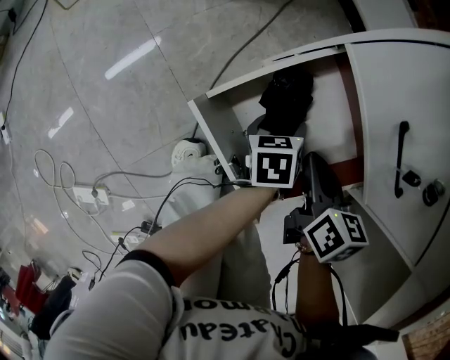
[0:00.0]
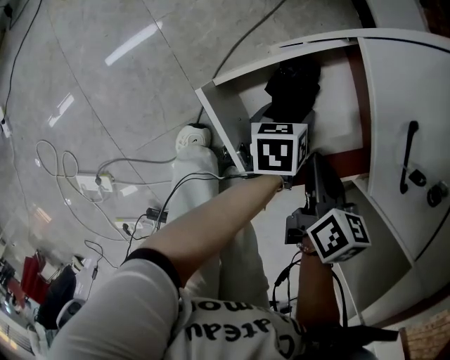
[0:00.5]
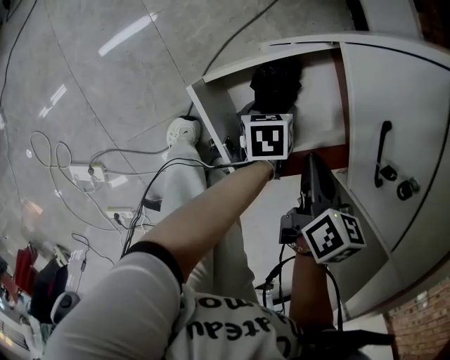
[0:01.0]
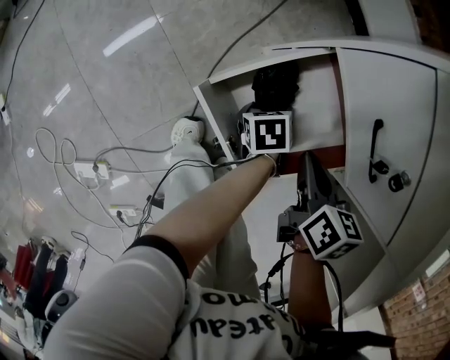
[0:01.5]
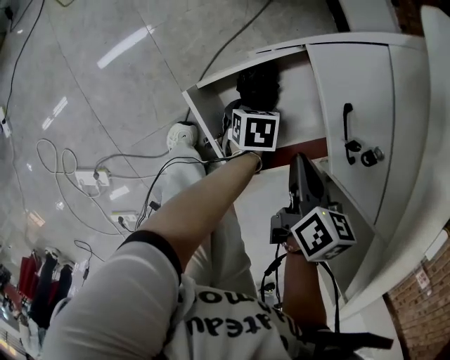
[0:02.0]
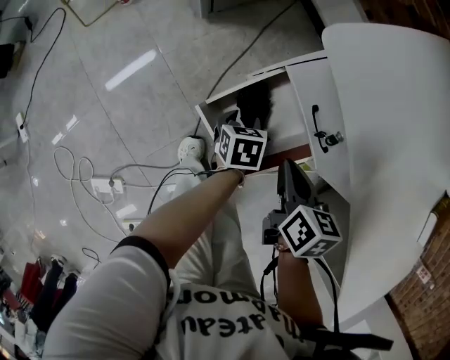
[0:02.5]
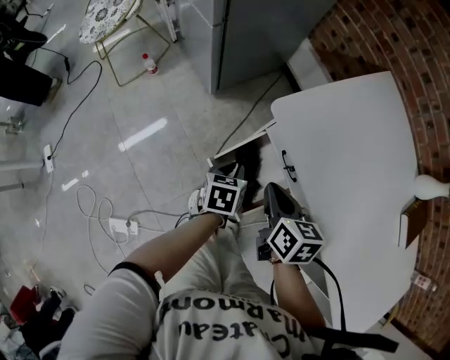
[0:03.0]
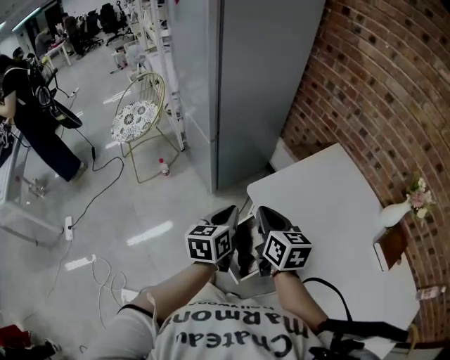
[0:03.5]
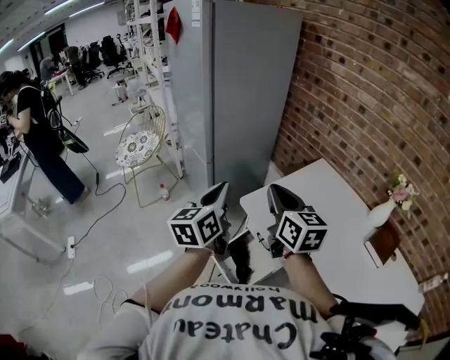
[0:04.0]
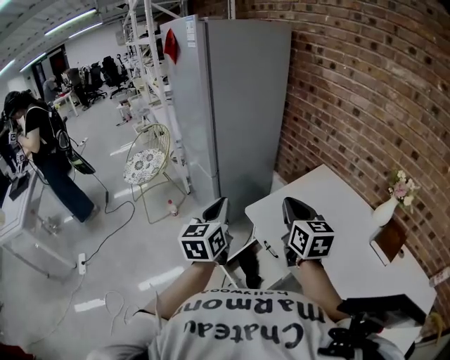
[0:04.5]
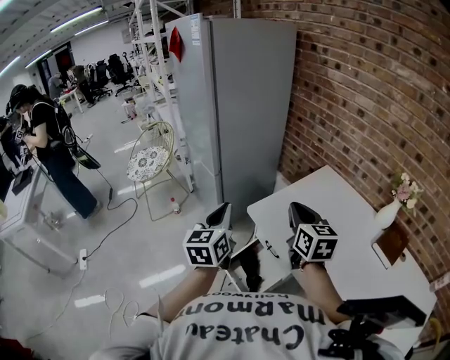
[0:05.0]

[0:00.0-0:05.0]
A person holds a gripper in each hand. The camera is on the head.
0:00.0 to 0:02.5: The right gripper heads upward, covering some 15 cm. Meanwhile the left gripper travels upward and to the left by approximately 15 cm, and swivels roughly 20 degrees.
0:02.5 to 0:05.0: Both grippers travel together upward, about 50 cm. The right gripper tilts its fingers some 40 degrees upward; the left gripper tips its fingers upward by some 50 degrees, and closes its fingers.

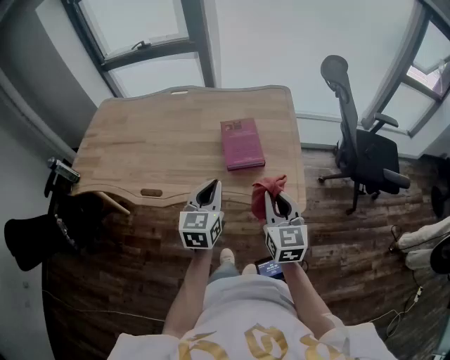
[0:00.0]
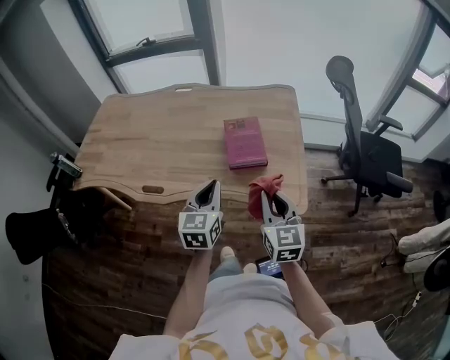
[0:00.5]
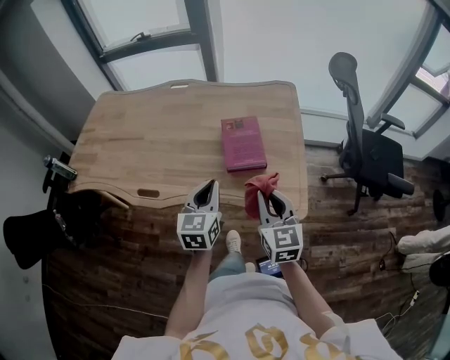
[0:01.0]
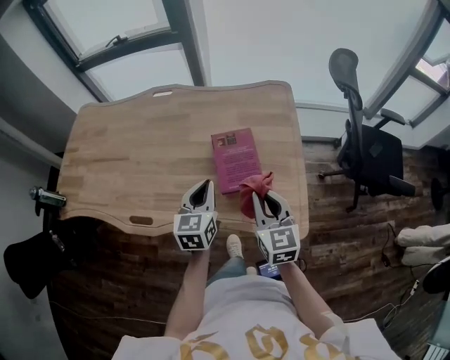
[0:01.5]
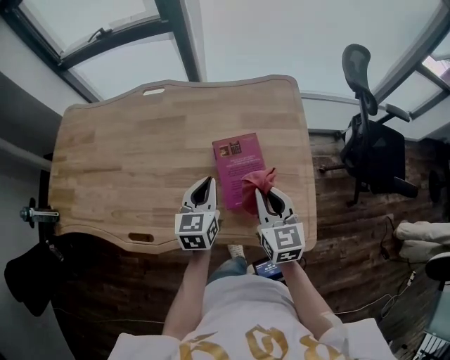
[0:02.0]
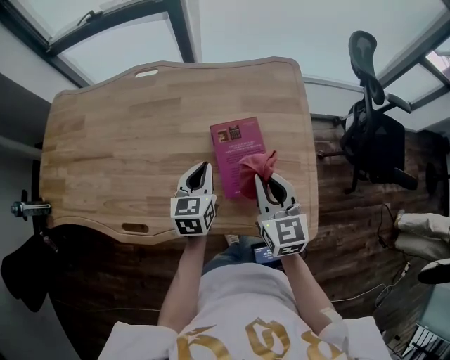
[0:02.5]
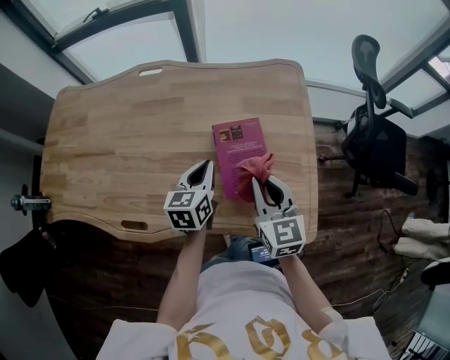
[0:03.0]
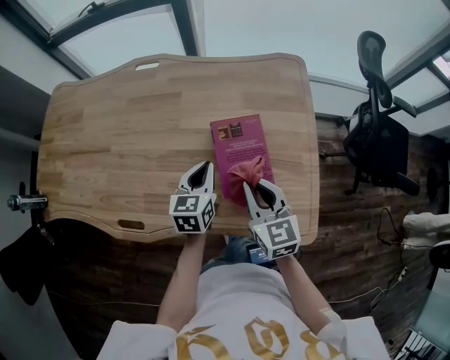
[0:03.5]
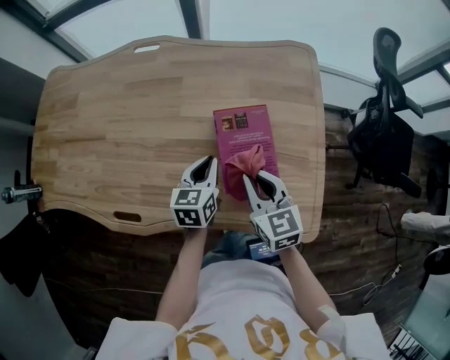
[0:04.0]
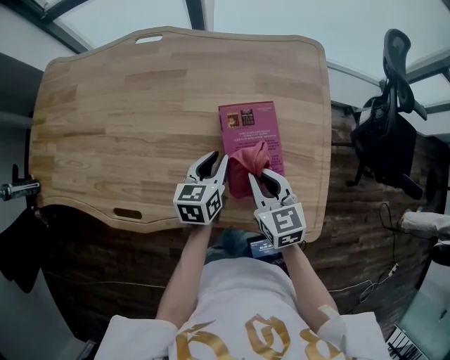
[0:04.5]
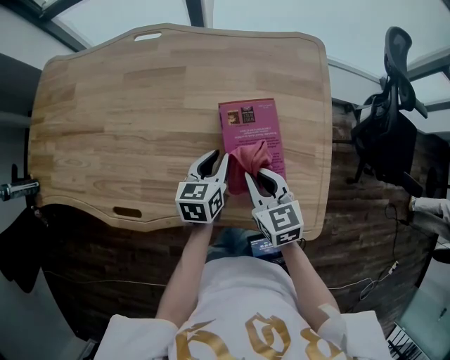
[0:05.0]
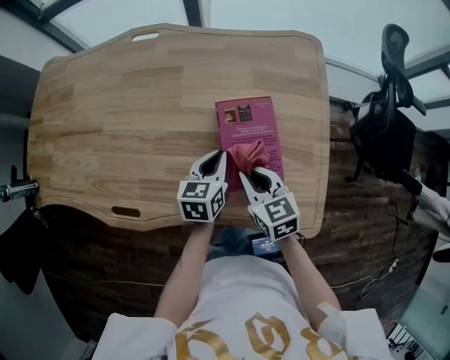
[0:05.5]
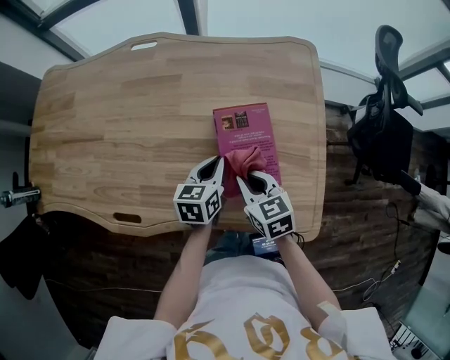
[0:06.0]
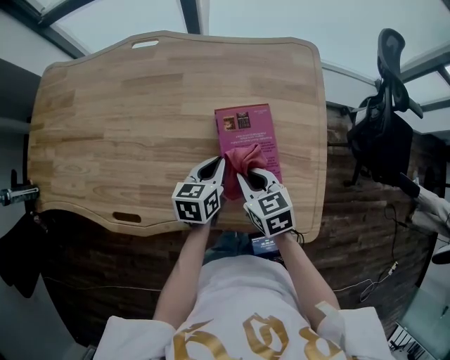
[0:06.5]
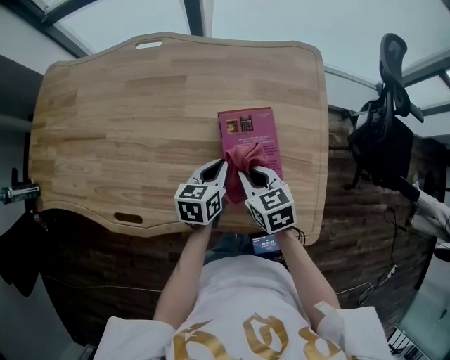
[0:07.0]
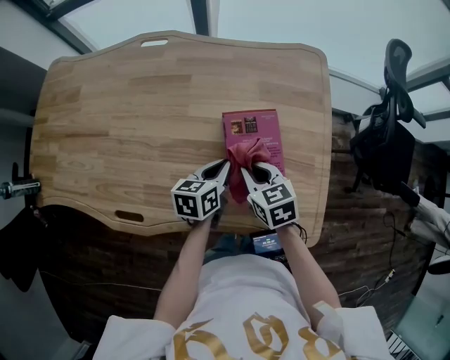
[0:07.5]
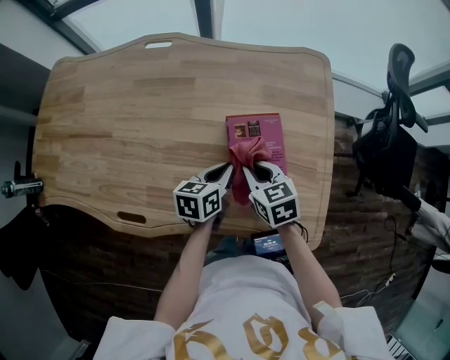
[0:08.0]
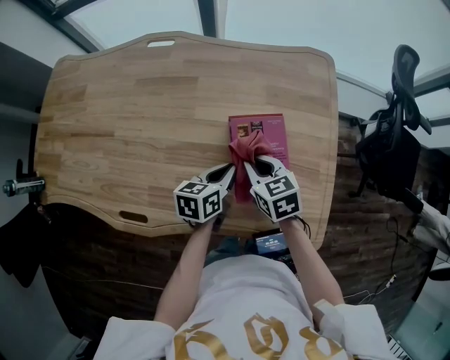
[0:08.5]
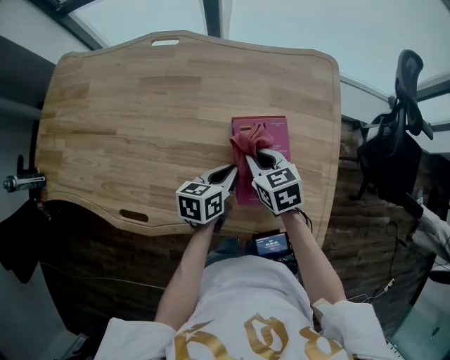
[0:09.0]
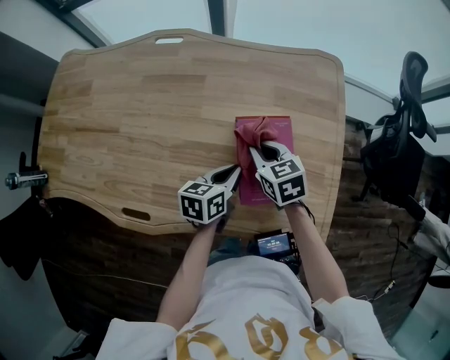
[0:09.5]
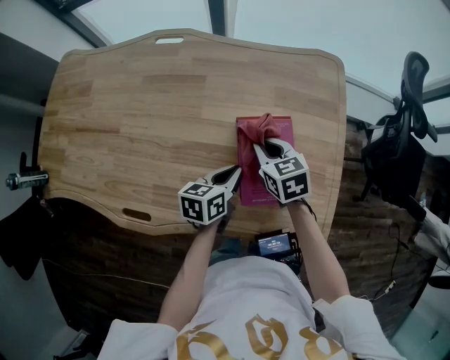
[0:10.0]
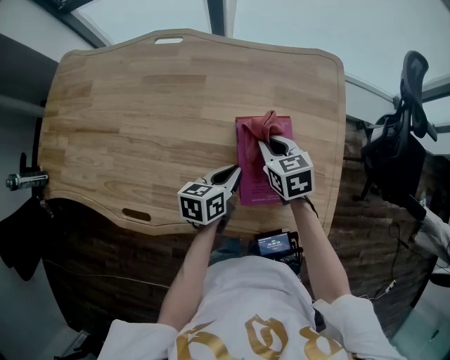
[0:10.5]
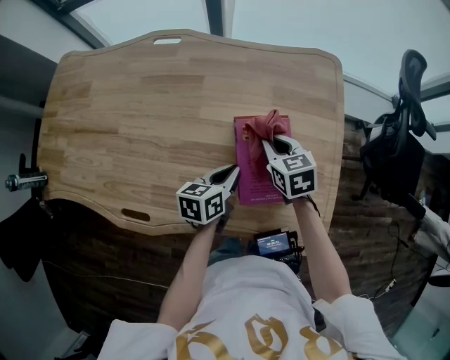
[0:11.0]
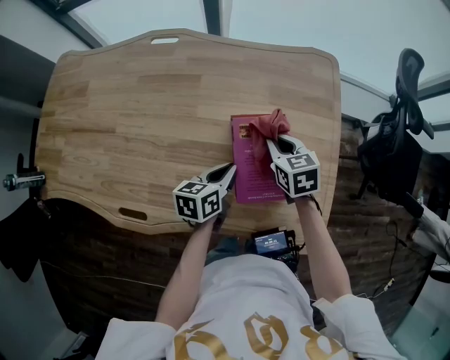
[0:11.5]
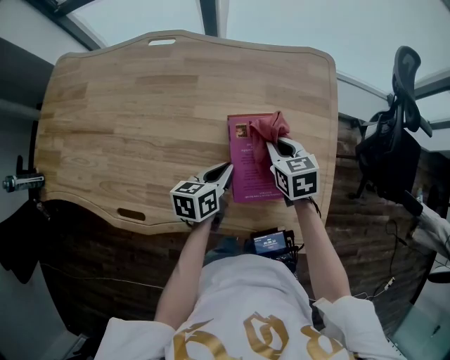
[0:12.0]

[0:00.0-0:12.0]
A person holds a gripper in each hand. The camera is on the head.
0:00.0 to 0:02.0: The two grippers go approximately 25 cm forward.
0:02.0 to 0:04.0: Both grippers travel together downward, about 10 cm.
0:04.0 to 0:06.0: The right gripper moves downward, roughly 5 cm.
0:06.0 to 0:08.0: The grippers stay close to where they were, moving slightly.
0:08.0 to 0:10.0: The right gripper shifts some 5 cm forward.
0:10.0 to 0:12.0: The right gripper heads to the right, covering roughly 5 cm.

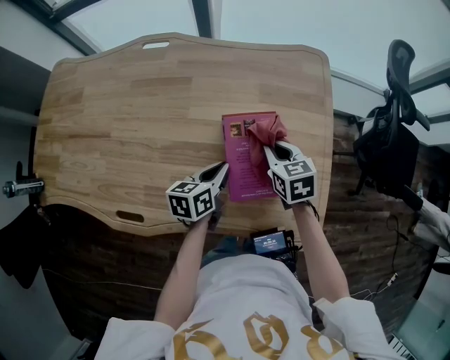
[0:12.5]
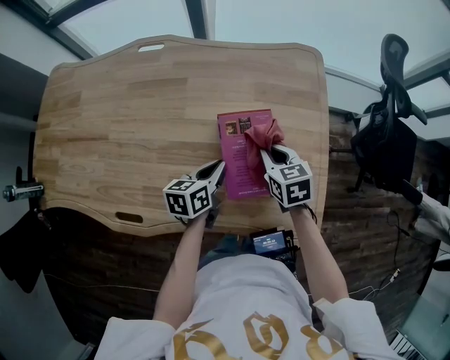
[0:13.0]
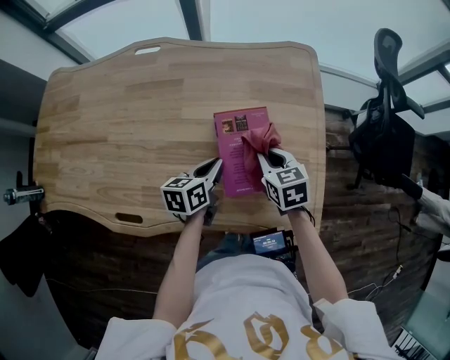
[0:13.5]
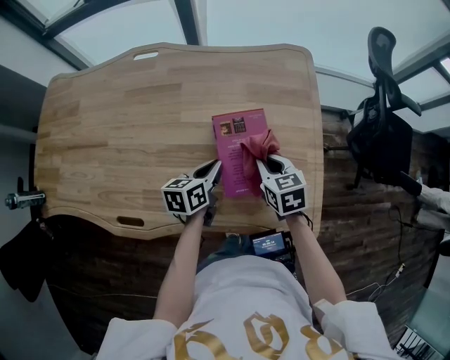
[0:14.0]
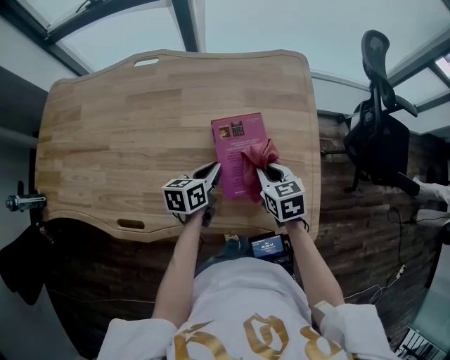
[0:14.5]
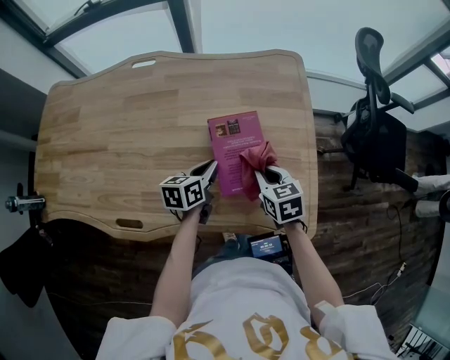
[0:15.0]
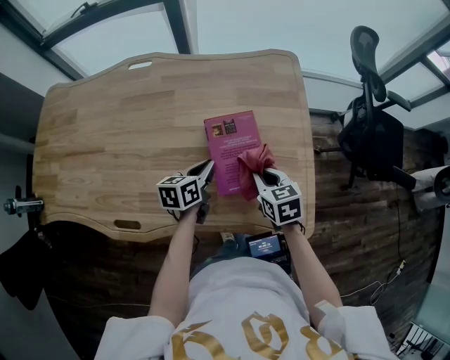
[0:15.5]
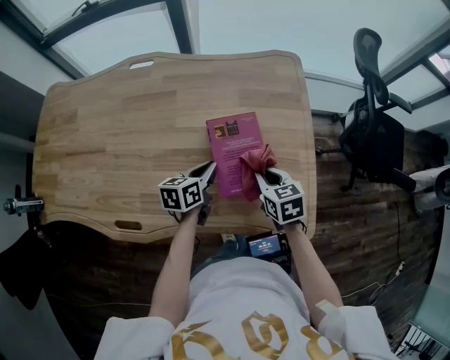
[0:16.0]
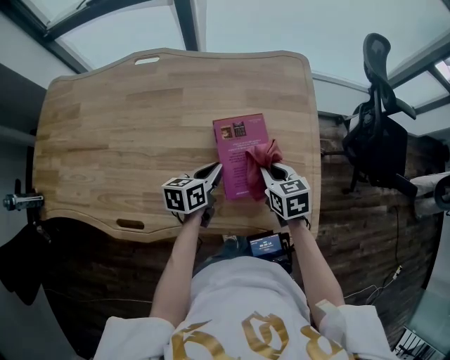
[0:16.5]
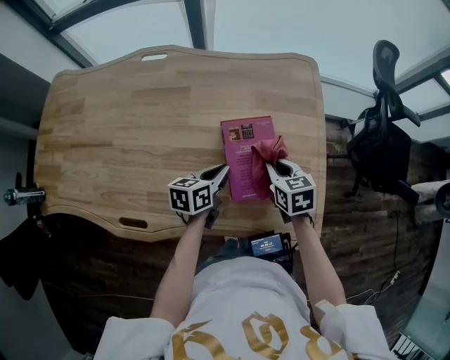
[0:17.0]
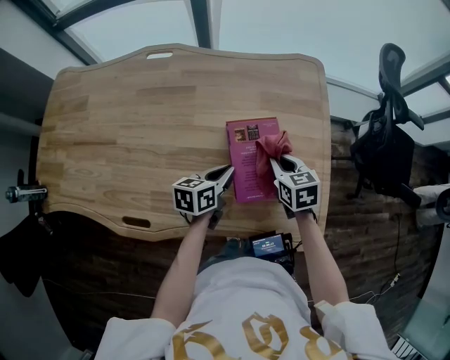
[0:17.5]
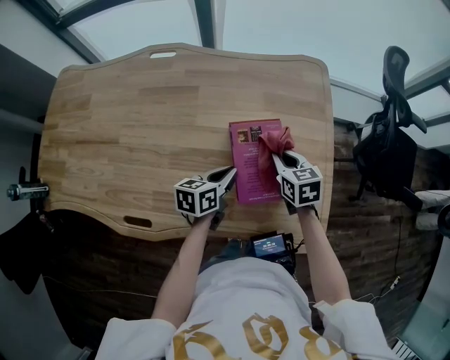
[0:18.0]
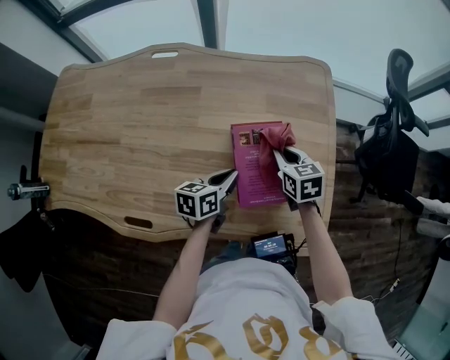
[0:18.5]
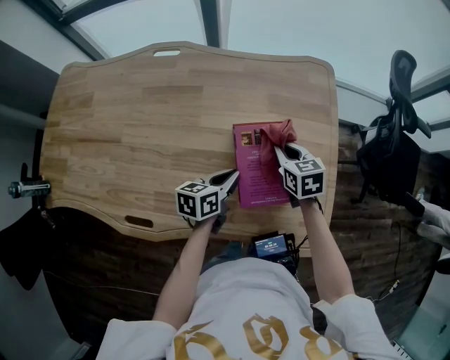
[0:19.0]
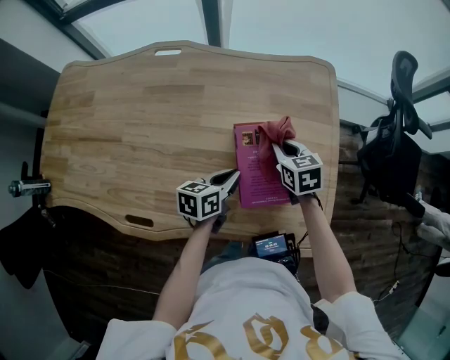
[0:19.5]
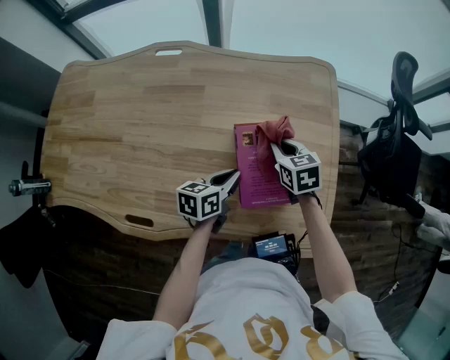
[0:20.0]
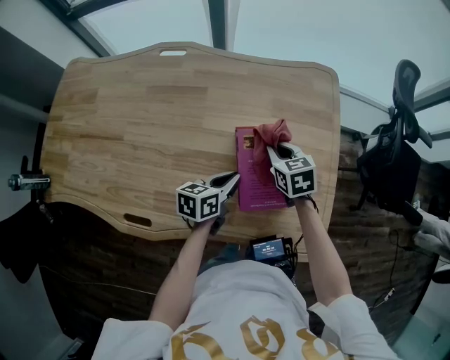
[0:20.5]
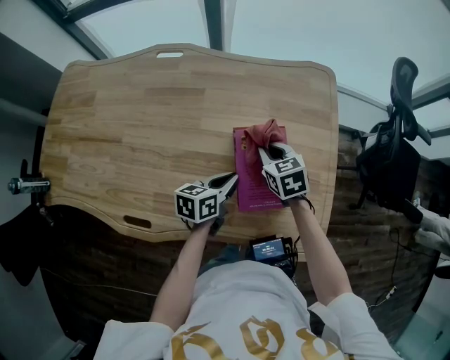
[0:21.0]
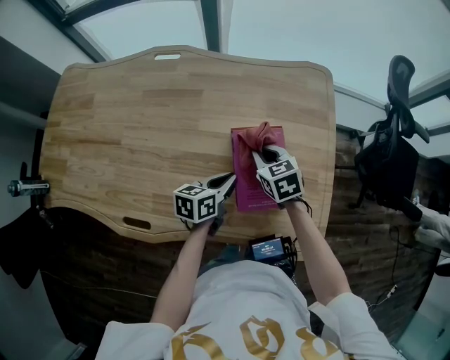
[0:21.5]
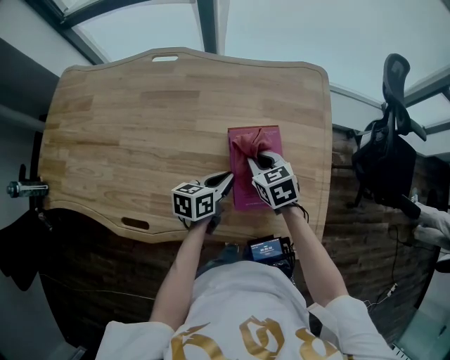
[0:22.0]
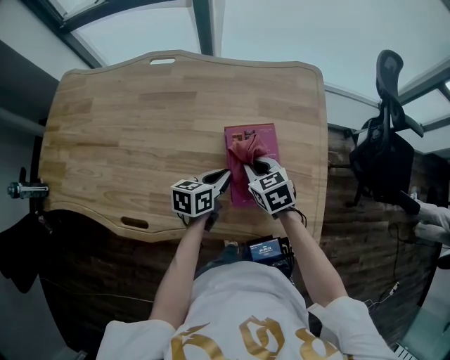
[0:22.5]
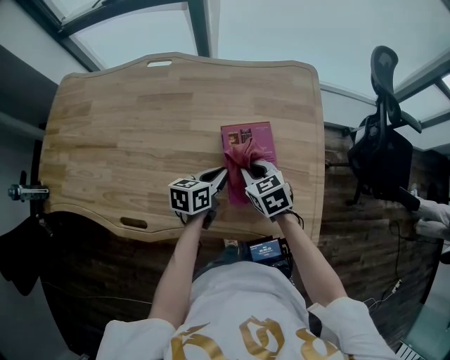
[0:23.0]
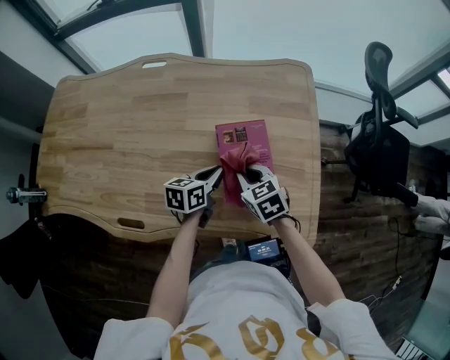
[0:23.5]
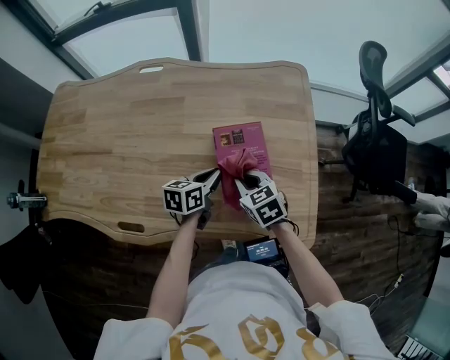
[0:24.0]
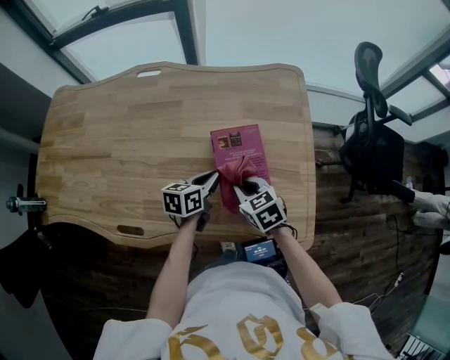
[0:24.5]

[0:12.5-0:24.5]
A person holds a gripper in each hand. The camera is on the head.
0:12.5 to 0:14.5: The right gripper travels backward by some 5 cm.
0:14.5 to 0:16.5: The grippers make only small movements.
0:16.5 to 0:18.5: The right gripper is displaced forward by about 10 cm.
0:18.5 to 0:20.5: The grippers make only small movements.
0:20.5 to 0:22.5: The right gripper is displaced backward by roughly 5 cm.
0:22.5 to 0:24.5: The right gripper is displaced backward by approximately 5 cm.
